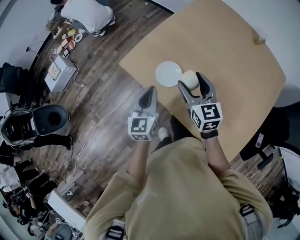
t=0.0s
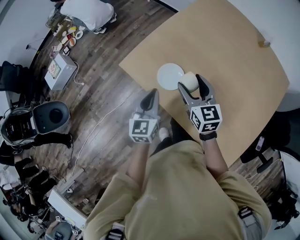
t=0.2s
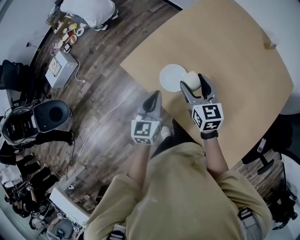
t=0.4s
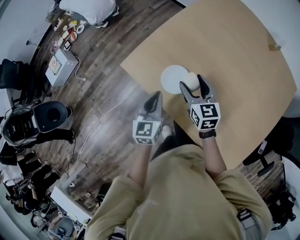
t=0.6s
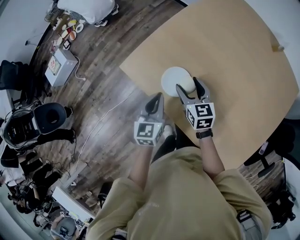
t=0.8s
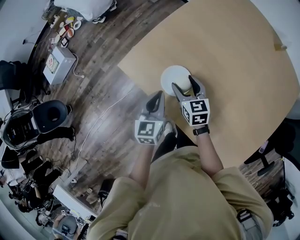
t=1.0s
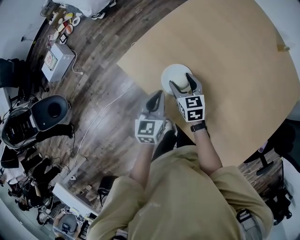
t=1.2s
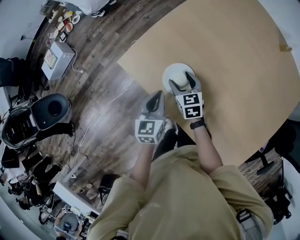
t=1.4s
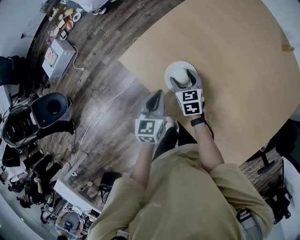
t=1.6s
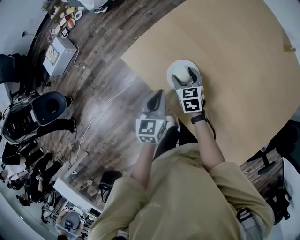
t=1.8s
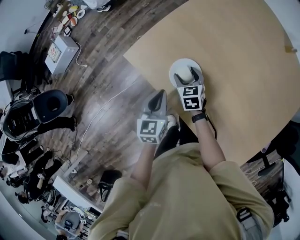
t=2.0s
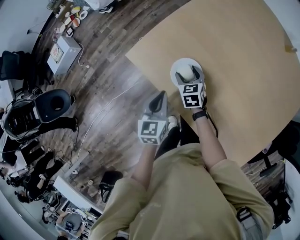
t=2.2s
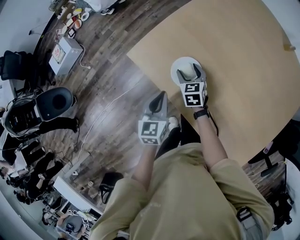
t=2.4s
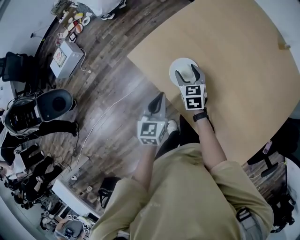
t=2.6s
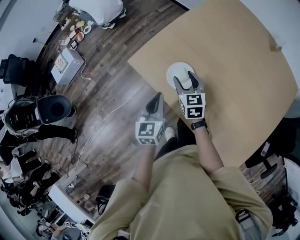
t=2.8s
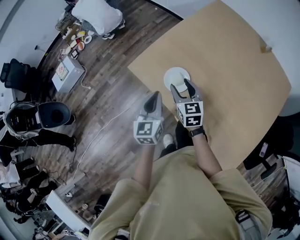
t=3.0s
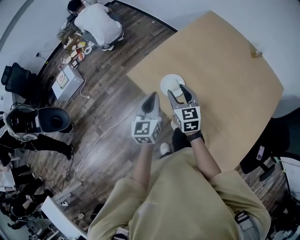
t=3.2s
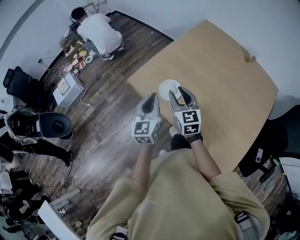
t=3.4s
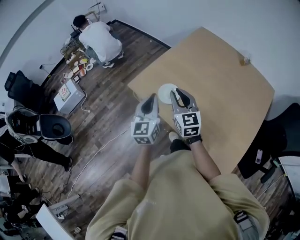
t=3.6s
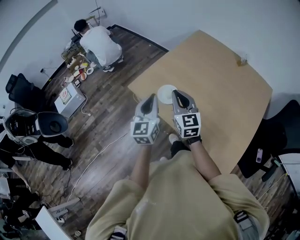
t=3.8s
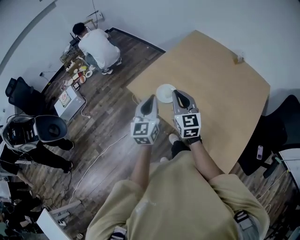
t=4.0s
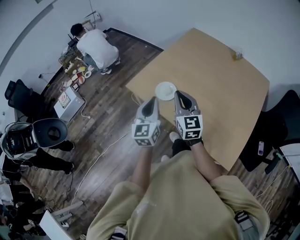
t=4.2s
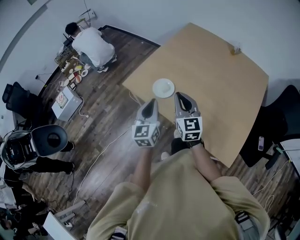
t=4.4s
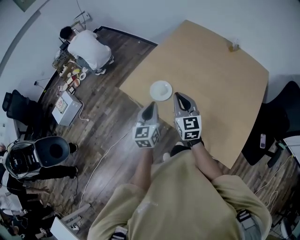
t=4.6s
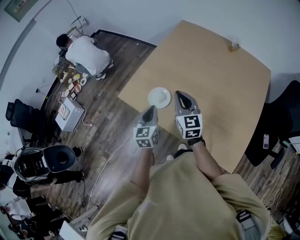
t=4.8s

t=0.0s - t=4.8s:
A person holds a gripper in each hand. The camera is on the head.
t=0.0s - t=1.6s: The right gripper is displaced downward and forward by some 25 cm, and changes its angle by approximately 20 degrees. Meanwhile the left gripper goes roughly 15 cm downward and forward.
t=1.6s - t=3.2s: Both grippers travel together upward and backward, approximately 20 cm. The right gripper turns by some 20 degrees. Meanwhile the left gripper turns by about 20 degrees.
t=3.2s - t=4.8s: The right gripper goes roughly 15 cm to the right and upward, and closes its fingers. Meanwhile the left gripper heads to the right, covering about 10 cm, and moves roughly 10 cm upward and comes back.

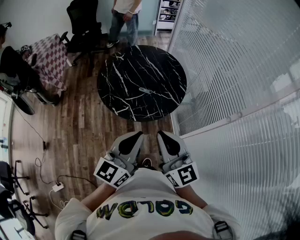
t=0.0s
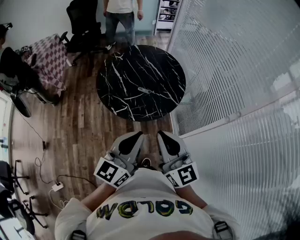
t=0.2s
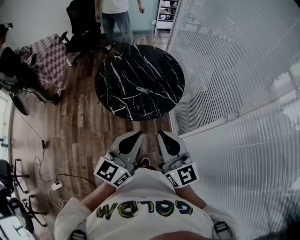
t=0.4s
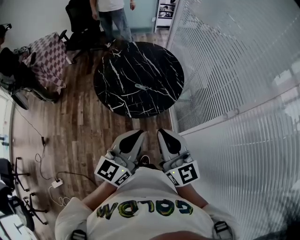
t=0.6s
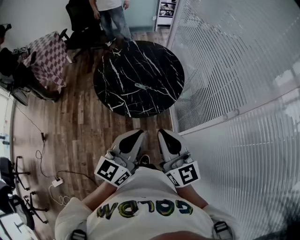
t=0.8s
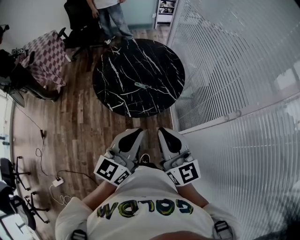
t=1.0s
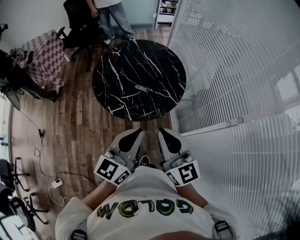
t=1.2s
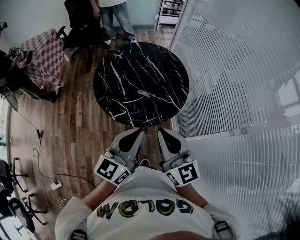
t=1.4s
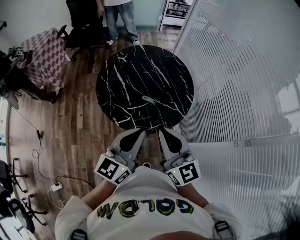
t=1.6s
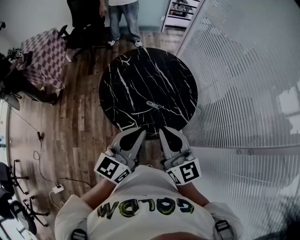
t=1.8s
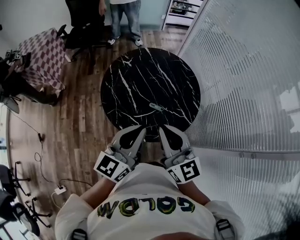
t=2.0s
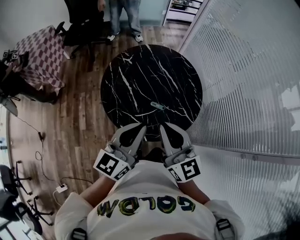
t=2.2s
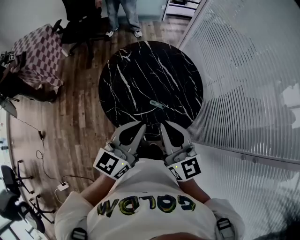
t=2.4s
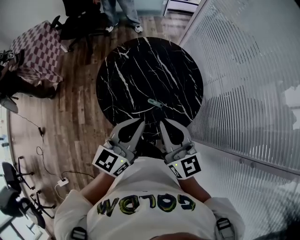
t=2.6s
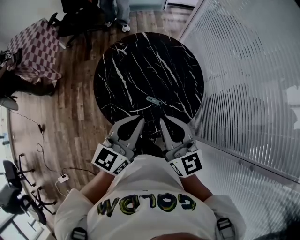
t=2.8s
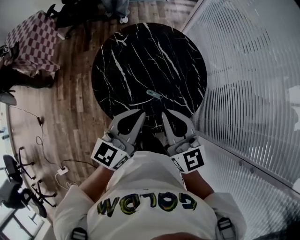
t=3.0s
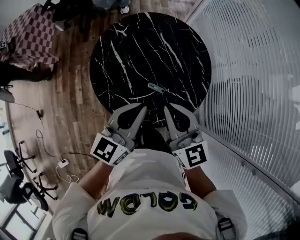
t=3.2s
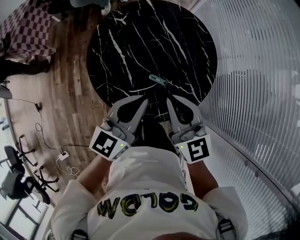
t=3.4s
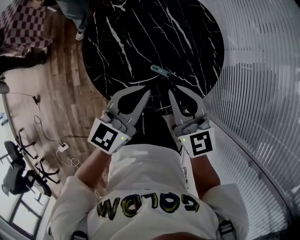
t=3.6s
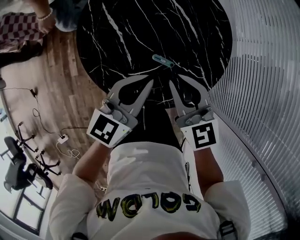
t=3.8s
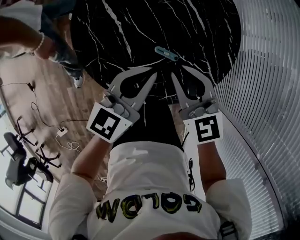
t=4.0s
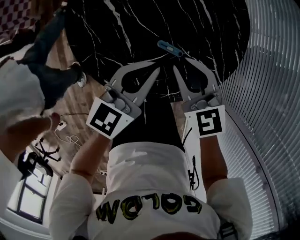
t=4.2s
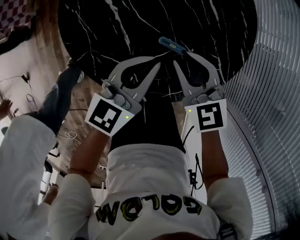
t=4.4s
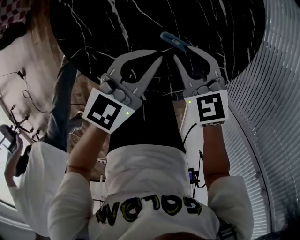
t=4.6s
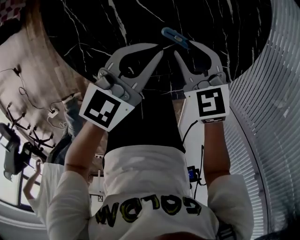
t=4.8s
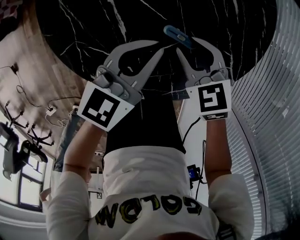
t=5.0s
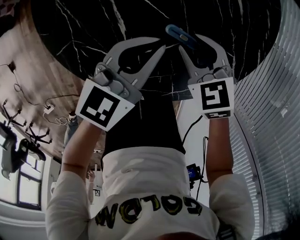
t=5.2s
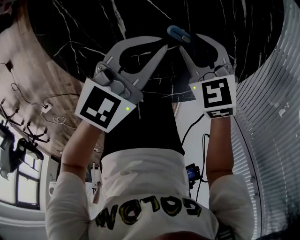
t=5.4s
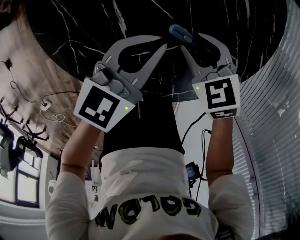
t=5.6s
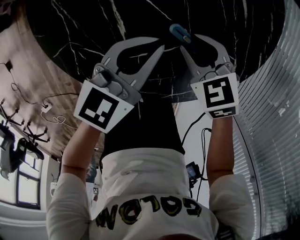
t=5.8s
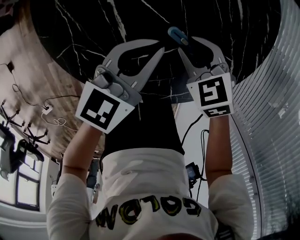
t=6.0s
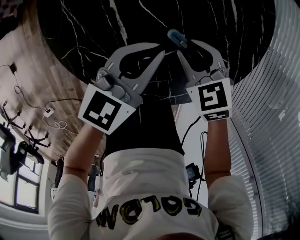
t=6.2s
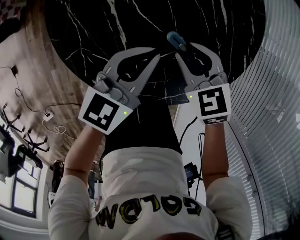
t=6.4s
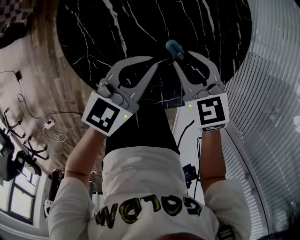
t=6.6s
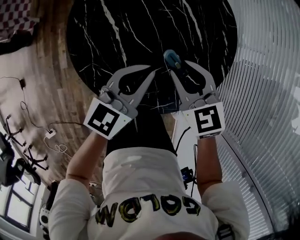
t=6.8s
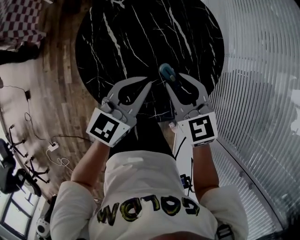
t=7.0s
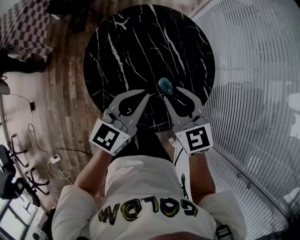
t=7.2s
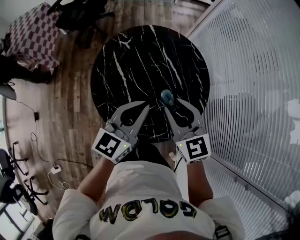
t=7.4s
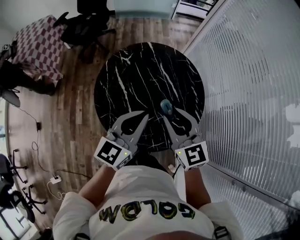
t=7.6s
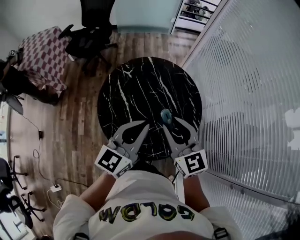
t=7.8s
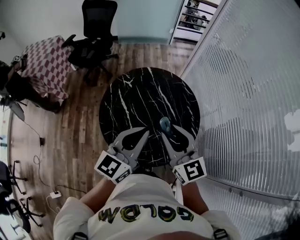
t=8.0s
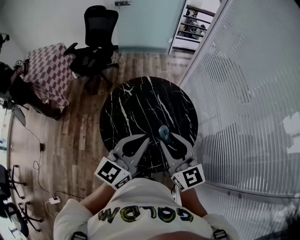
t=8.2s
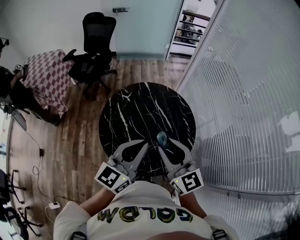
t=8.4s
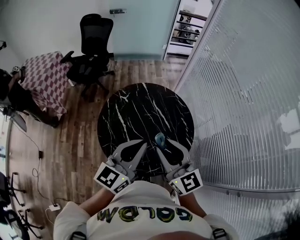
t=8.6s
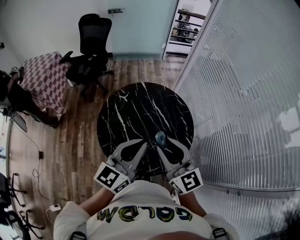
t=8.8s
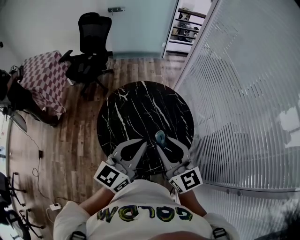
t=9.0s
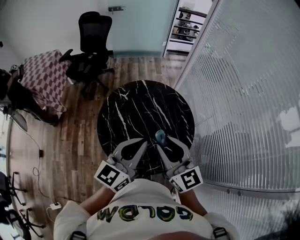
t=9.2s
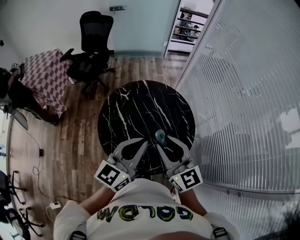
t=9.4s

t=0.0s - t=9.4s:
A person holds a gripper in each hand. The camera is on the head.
t=0.0s - t=1.6s: The grippers both shift forward by roughly 15 cm.
t=1.6s - t=3.2s: The grippers both shift forward by approximately 20 cm.
t=3.2s - t=4.8s: Both grippers travel together downward, approximately 30 cm. The right gripper tips its fingers downward by roughly 40 degrees, and opens up.
t=4.8s - t=6.2s: The grippers move only a little.
t=6.2s - t=7.8s: The two grippers go approximately 40 cm upward. The left gripper rotates about 20 degrees, while the right gripper points its fingers about 50 degrees further upward.
t=7.8s - t=9.4s: The grippers both shift upward by some 5 cm.

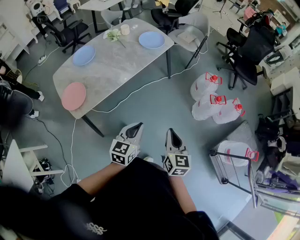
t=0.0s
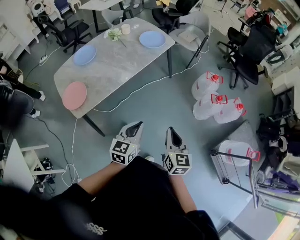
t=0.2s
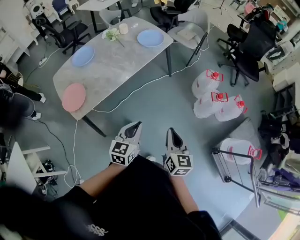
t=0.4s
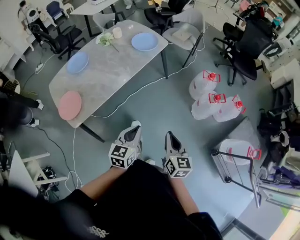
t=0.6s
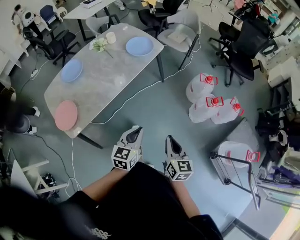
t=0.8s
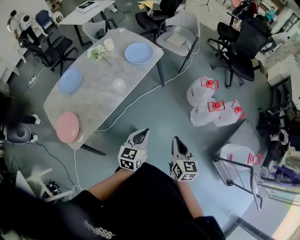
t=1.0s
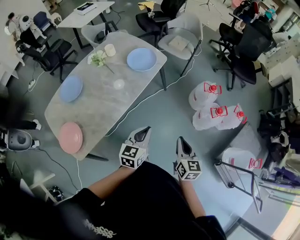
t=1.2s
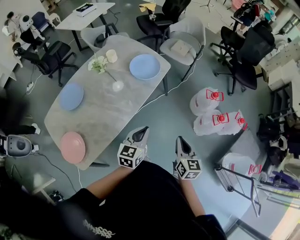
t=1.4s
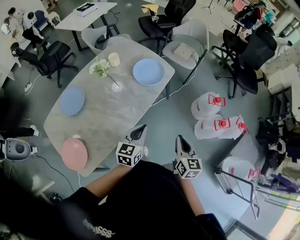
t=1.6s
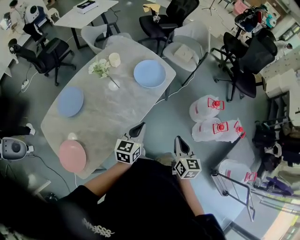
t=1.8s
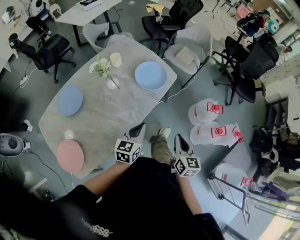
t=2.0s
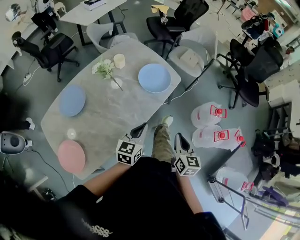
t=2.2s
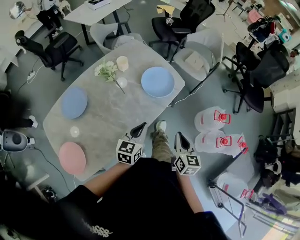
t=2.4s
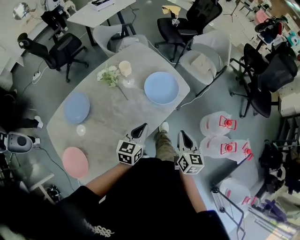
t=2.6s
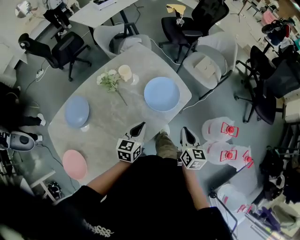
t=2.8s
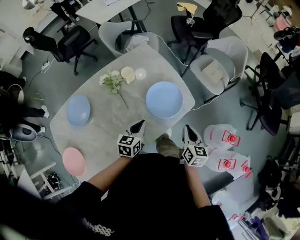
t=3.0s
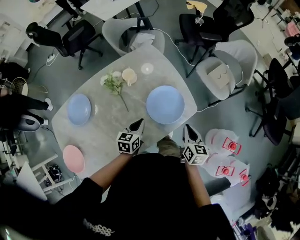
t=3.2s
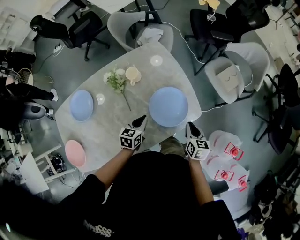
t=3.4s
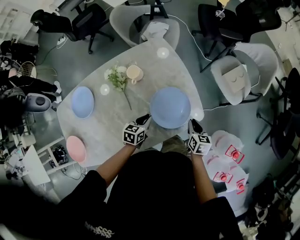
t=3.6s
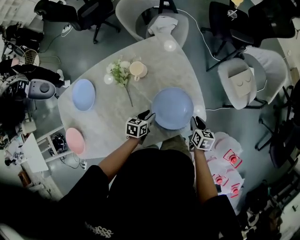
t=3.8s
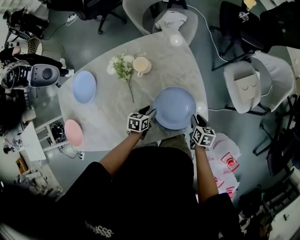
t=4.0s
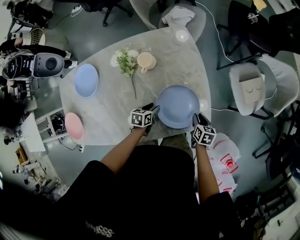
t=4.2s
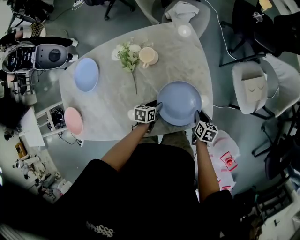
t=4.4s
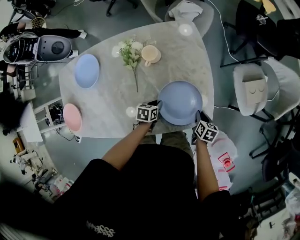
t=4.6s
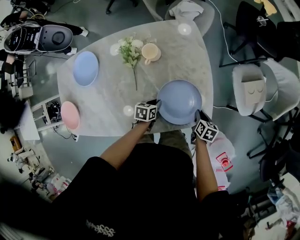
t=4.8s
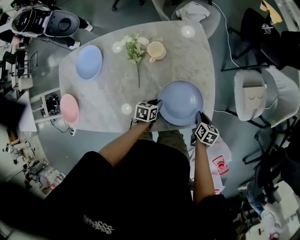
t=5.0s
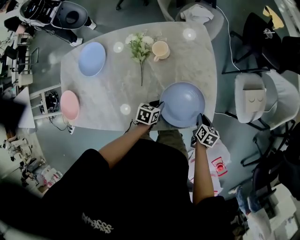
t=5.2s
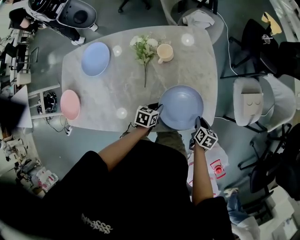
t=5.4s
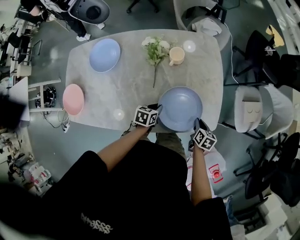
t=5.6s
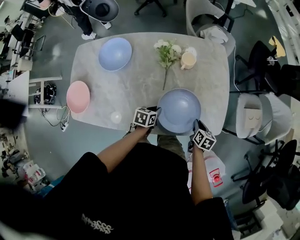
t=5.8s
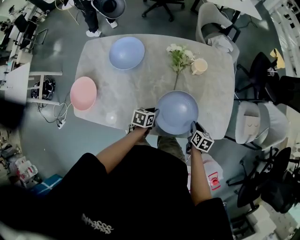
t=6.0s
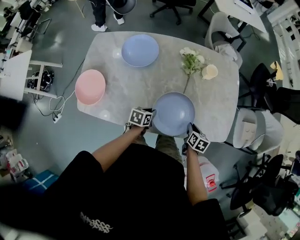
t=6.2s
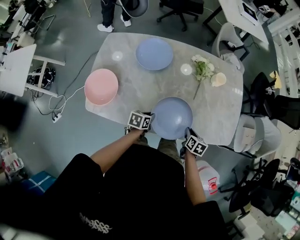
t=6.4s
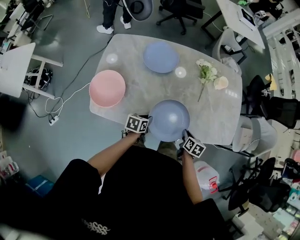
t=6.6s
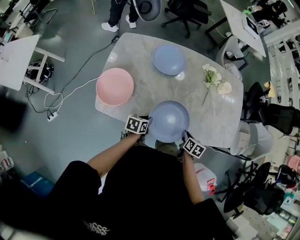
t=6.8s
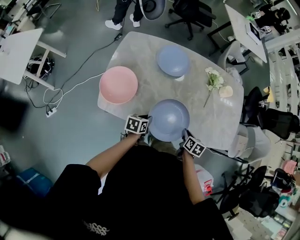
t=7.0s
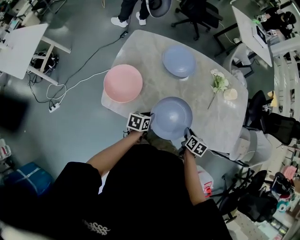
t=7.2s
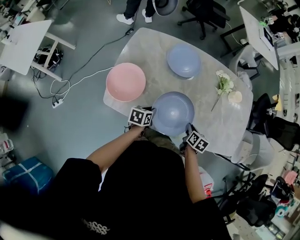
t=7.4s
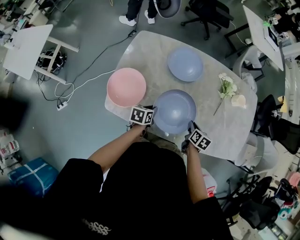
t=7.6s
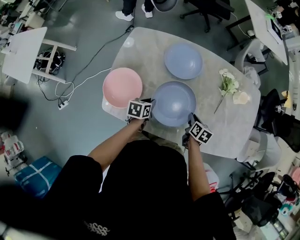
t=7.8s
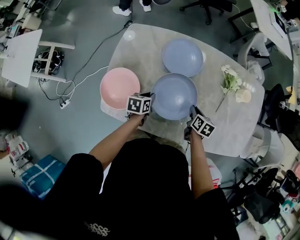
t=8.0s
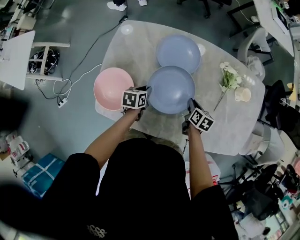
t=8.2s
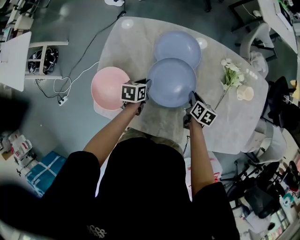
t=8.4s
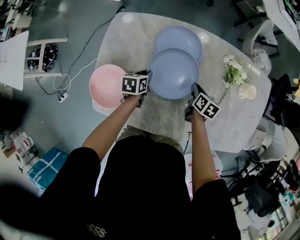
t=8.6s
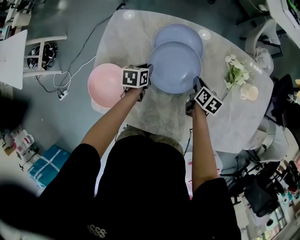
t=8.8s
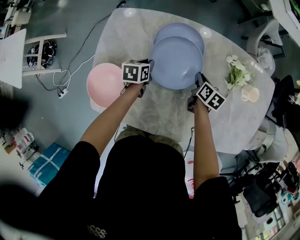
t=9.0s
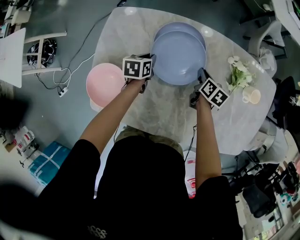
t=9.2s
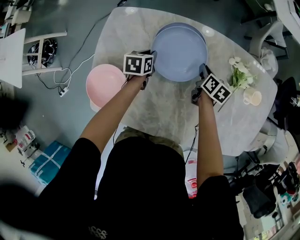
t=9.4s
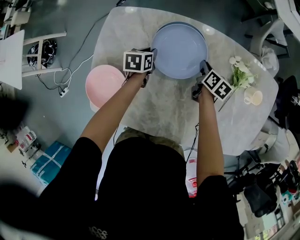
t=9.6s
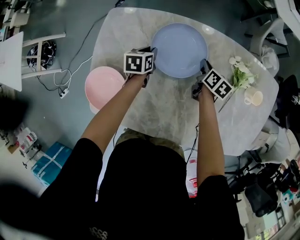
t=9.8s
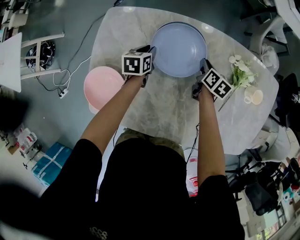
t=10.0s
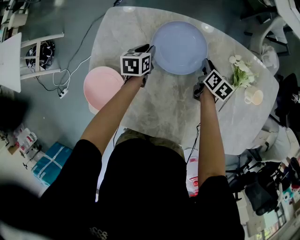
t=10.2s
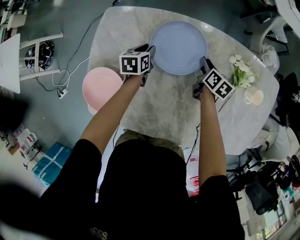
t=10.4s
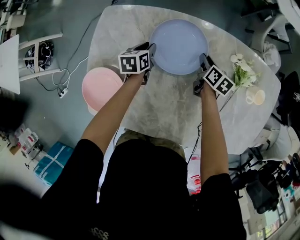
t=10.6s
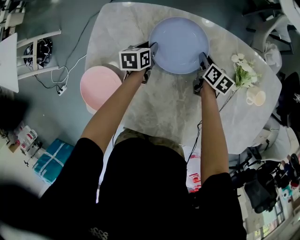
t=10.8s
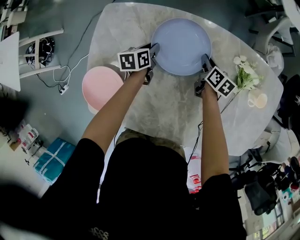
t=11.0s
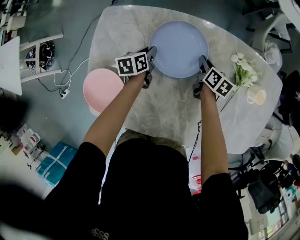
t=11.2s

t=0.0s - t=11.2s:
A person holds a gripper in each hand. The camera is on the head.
t=0.0s - t=1.6s: The grippers both shift forward by some 35 cm.
t=1.6s - t=3.2s: Both grippers travel together forward, about 35 cm. The right gripper turns by approximately 20 degrees. Meanwhile the left gripper swivels some 30 degrees.
t=3.2s - t=4.8s: The left gripper moves downward, about 20 cm, changes its angle by approximately 40 degrees, and opens, then closes once more. The right gripper travels downward and forward by approximately 25 cm, and turns by some 30 degrees.
t=4.8s - t=6.4s: The two grippers go about 35 cm to the left and backward.
t=6.4s - t=8.0s: Both grippers move to the left and forward, roughly 25 cm.
t=8.0s - t=9.6s: The grippers both shift forward by some 20 cm.
t=9.6s - t=11.2s: The grippers stay close to where they were, moving slightly.
